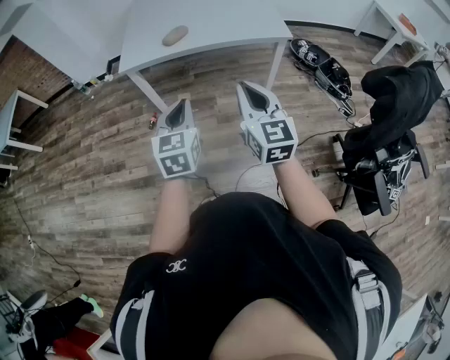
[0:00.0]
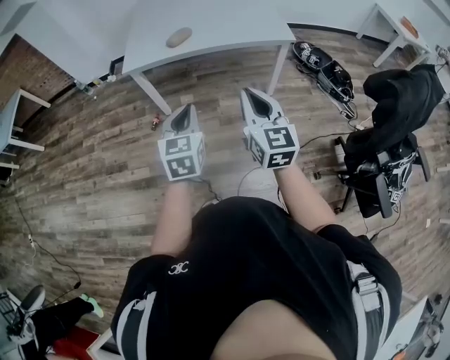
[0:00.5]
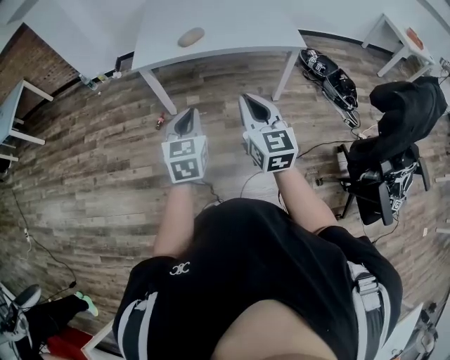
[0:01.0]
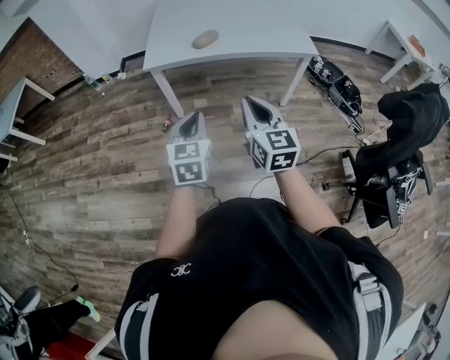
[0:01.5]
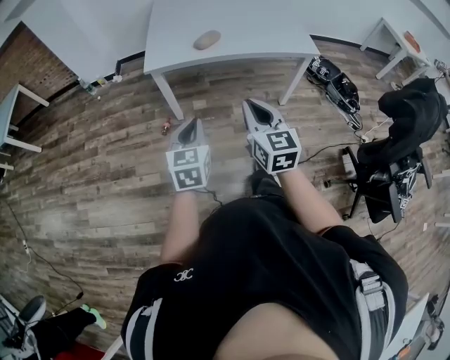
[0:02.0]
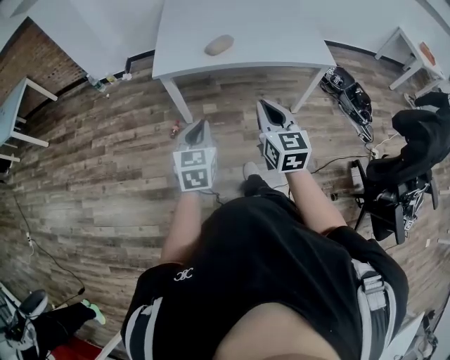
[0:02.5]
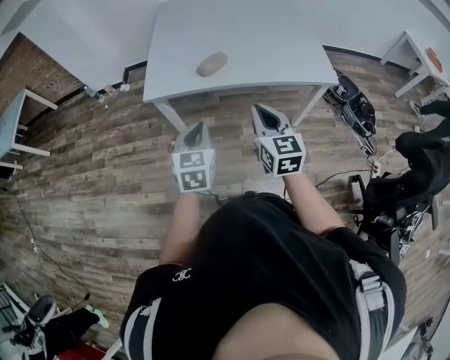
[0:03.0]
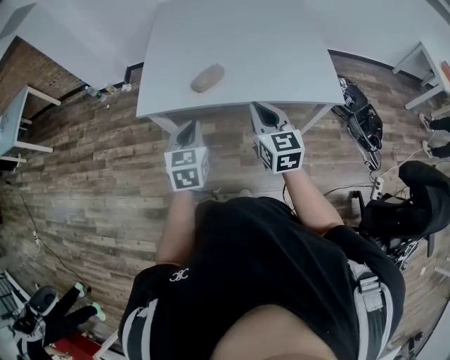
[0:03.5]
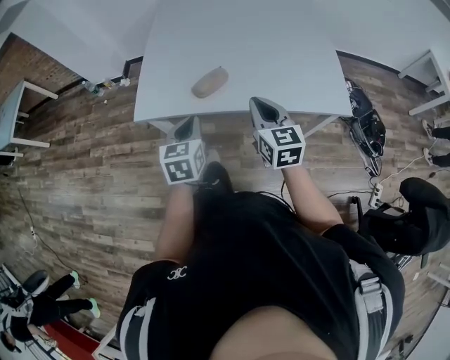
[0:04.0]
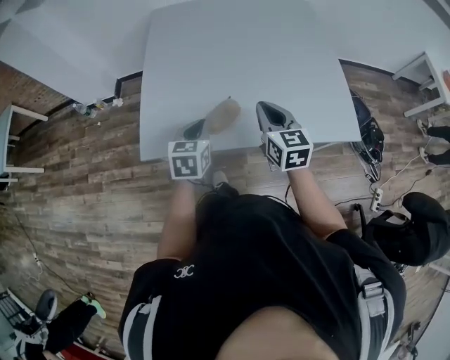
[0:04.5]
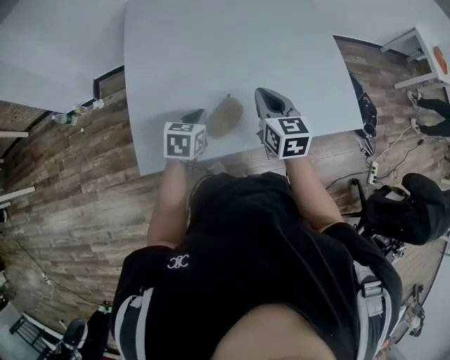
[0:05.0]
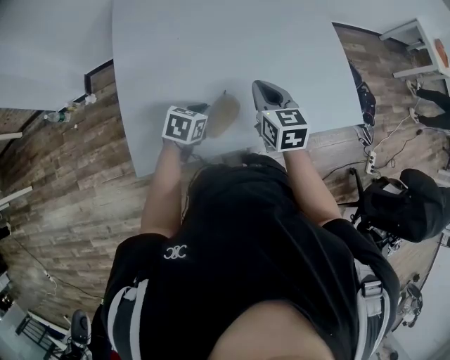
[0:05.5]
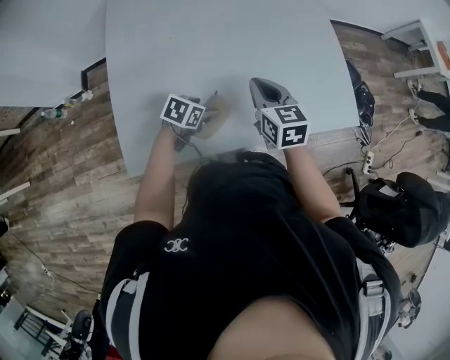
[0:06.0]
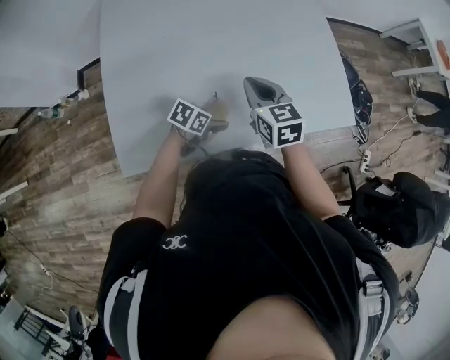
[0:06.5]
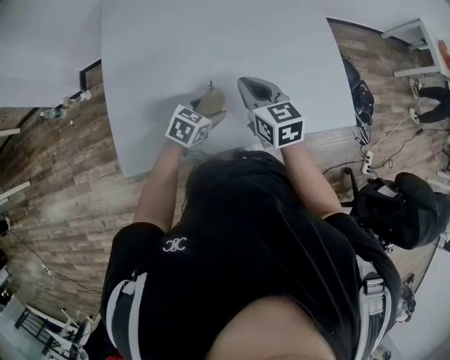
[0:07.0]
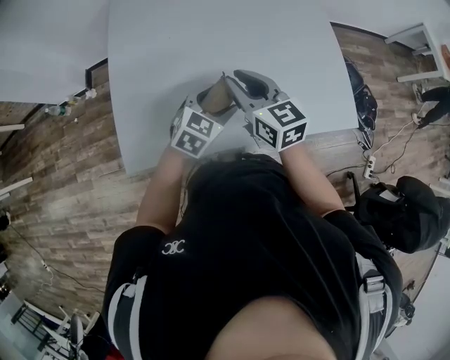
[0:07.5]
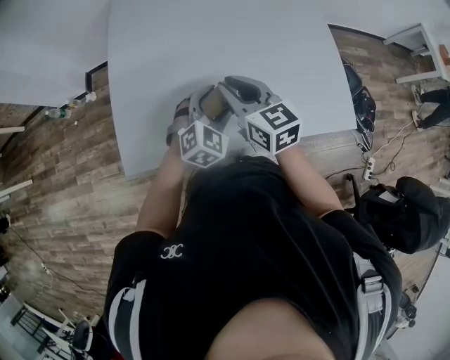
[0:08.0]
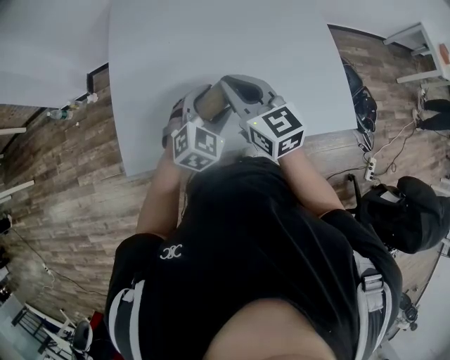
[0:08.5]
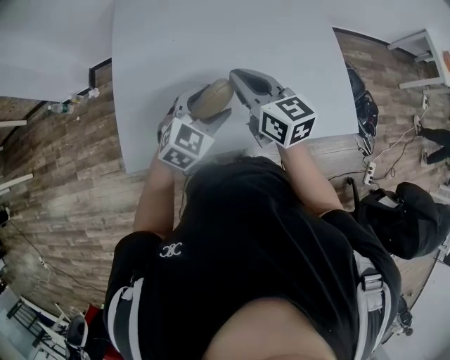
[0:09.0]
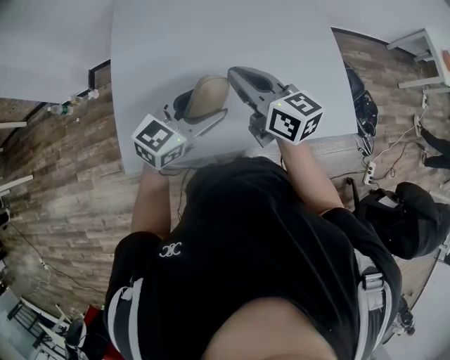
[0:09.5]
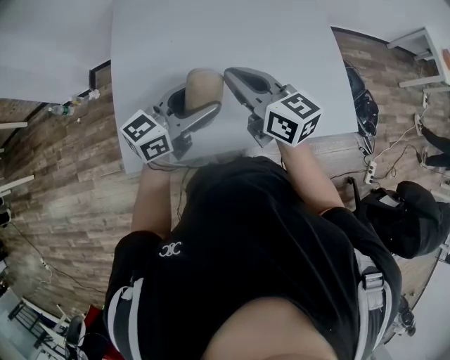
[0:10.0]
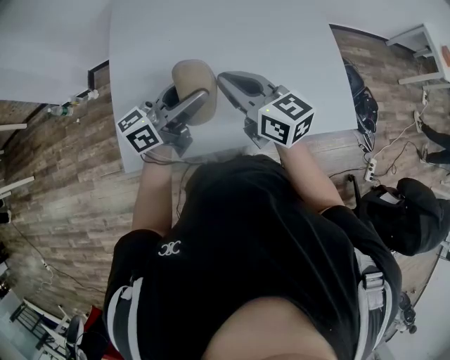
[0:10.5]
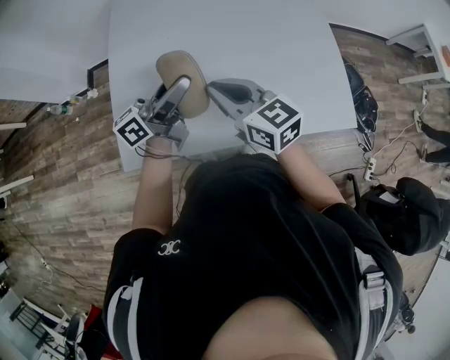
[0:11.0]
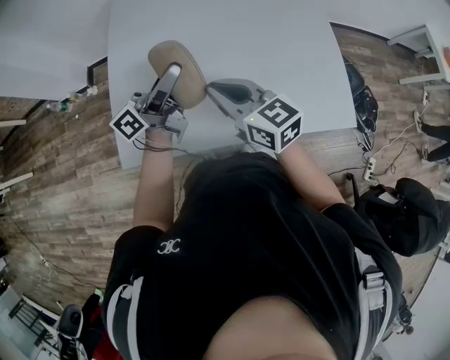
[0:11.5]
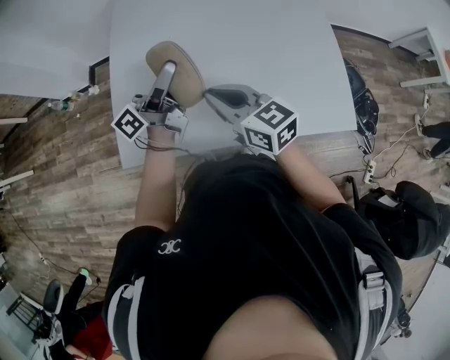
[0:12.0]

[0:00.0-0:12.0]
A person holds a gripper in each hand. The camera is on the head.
0:00.0 to 0:02.0: Both grippers move to the left, about 20 cm.
0:02.0 to 0:04.0: The pair of grippers is taken forward, about 50 cm.
0:04.0 to 0:06.0: The left gripper moves some 40 cm, changes its angle by approximately 60 degrees, and opens up, while the right gripper ends up about 35 cm from where it was.
0:06.0 to 0:08.0: The left gripper is displaced upward by approximately 15 cm, and turns by roughly 50 degrees. The right gripper heads upward, covering about 5 cm.
0:08.0 to 0:10.0: The right gripper is displaced upward by about 5 cm. The left gripper is displaced upward by about 10 cm, and tilts its fingers some 30 degrees upward.
0:10.0 to 0:12.0: The left gripper moves forward, some 5 cm, and swivels about 50 degrees. The right gripper is displaced backward by roughly 5 cm.

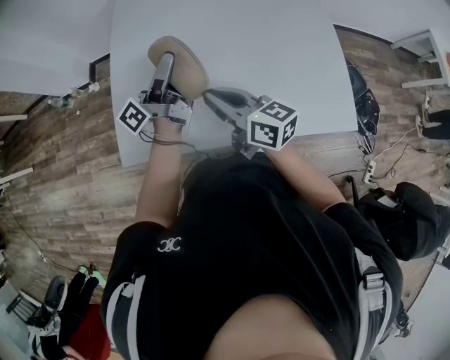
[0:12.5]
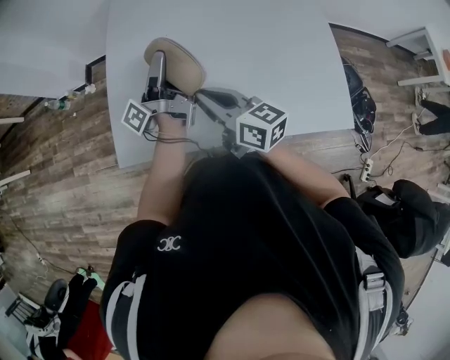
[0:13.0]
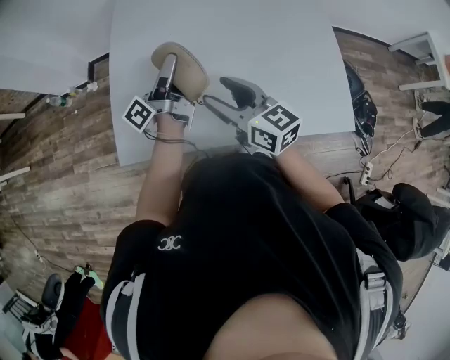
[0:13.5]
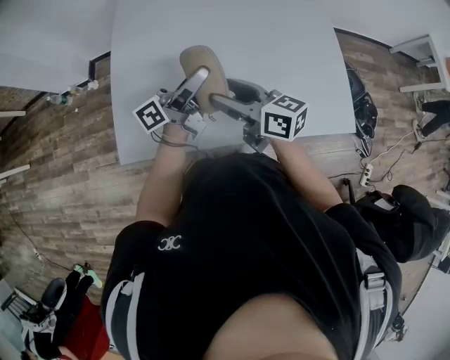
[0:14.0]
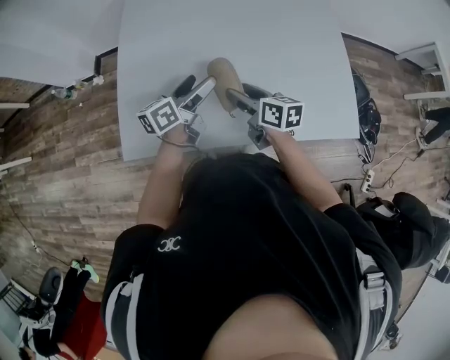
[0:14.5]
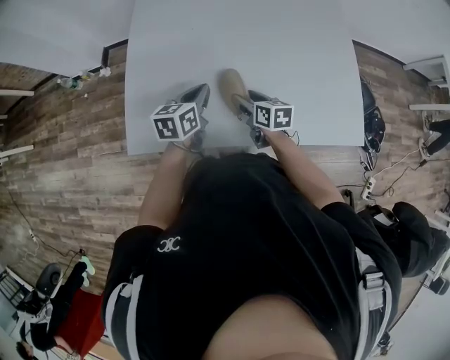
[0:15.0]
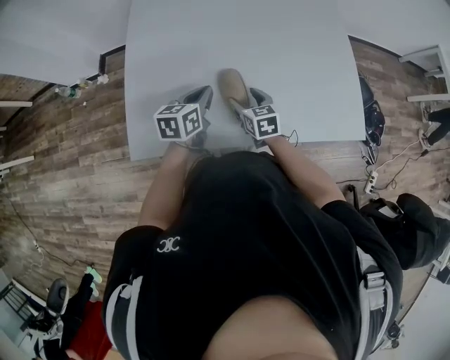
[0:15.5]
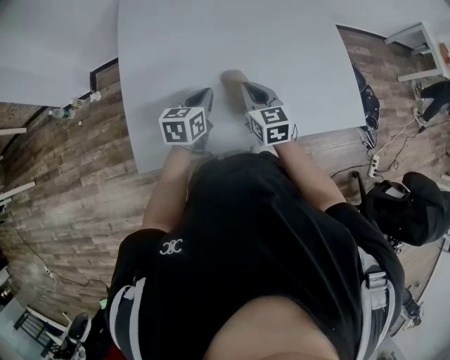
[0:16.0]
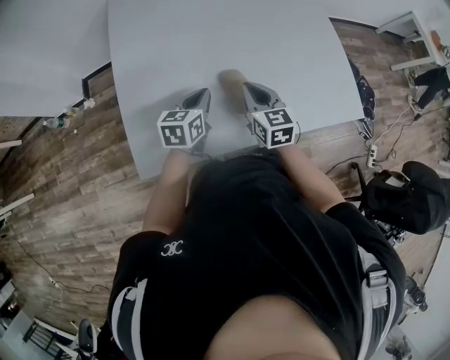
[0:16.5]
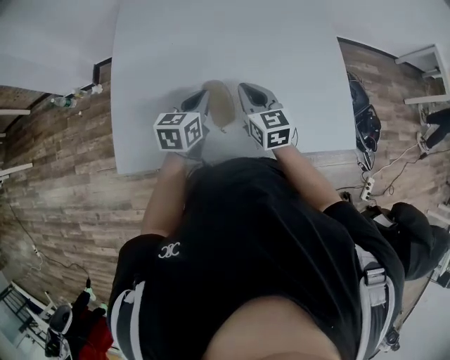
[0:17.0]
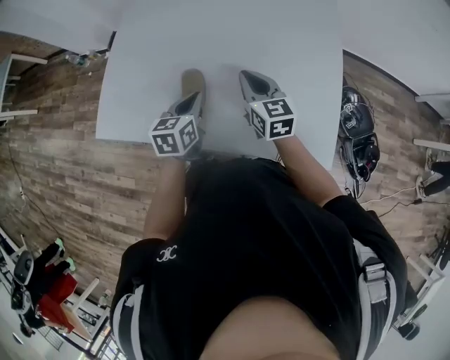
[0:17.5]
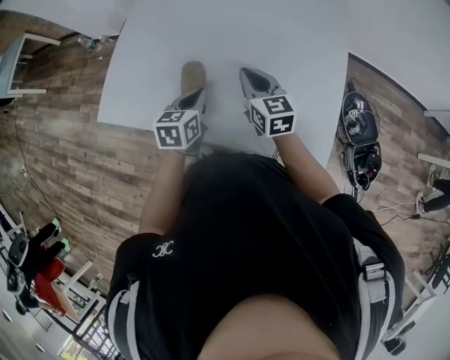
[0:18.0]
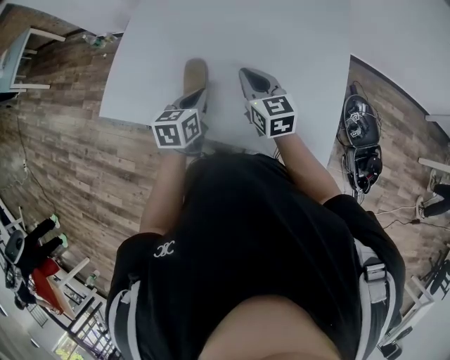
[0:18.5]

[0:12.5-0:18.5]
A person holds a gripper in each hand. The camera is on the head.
0:12.5 to 0:14.5: The right gripper moves downward and to the right, roughly 10 cm, swivels roughly 20 degrees, and opens. The left gripper travels downward by roughly 10 cm, and points its fingers some 30 degrees further downward.
0:14.5 to 0:16.5: The left gripper heads to the left and downward, covering about 5 cm, swivels roughly 30 degrees, and closes; the right gripper goes downward and returns, some 10 cm each way, changes its angle by roughly 40 degrees, and closes its fingers.
0:16.5 to 0:18.5: The left gripper changes place by about 30 cm, and changes its angle by about 30 degrees. The right gripper moves about 25 cm, and swivels about 30 degrees.

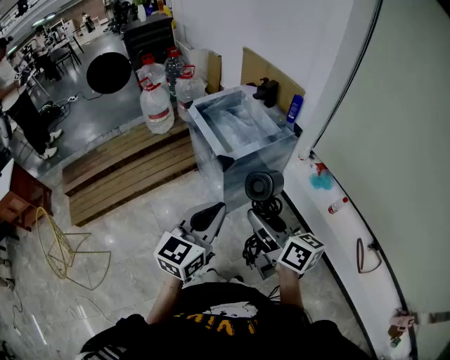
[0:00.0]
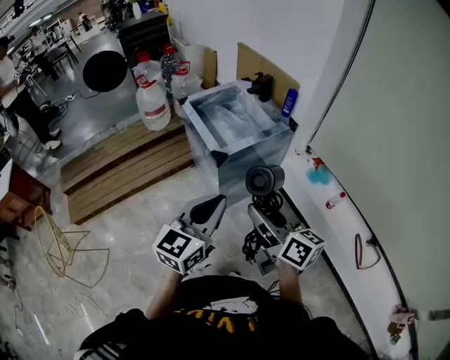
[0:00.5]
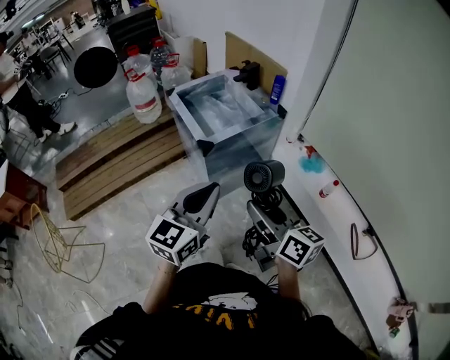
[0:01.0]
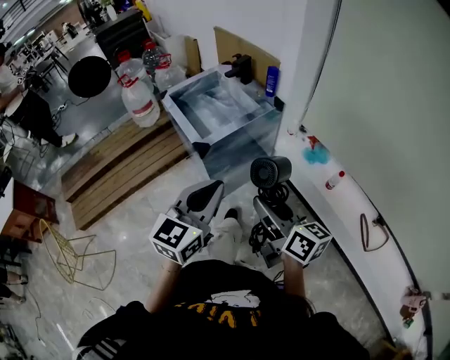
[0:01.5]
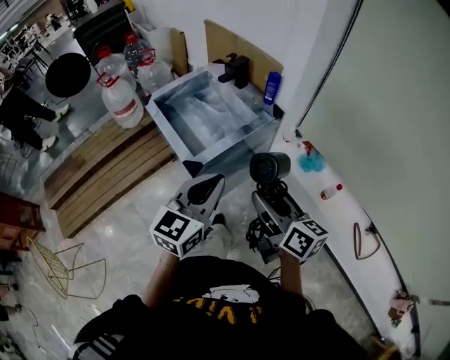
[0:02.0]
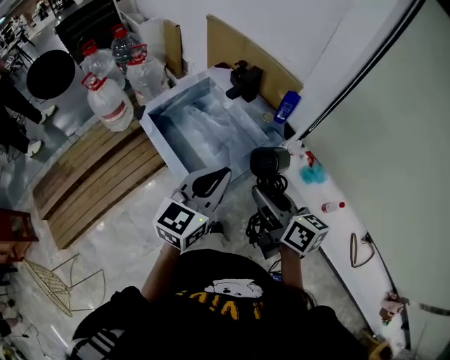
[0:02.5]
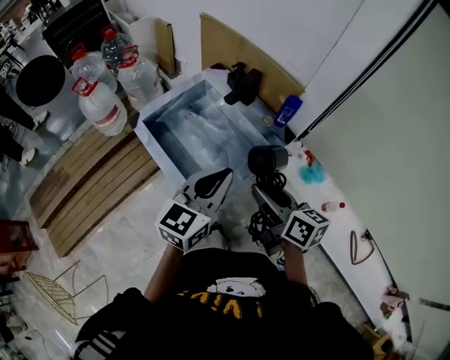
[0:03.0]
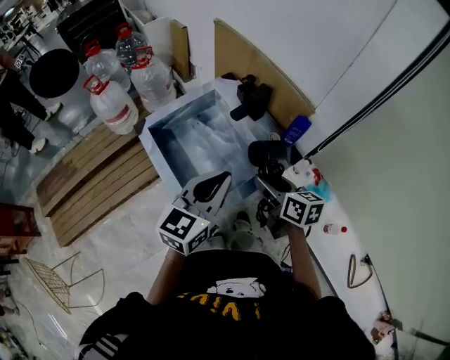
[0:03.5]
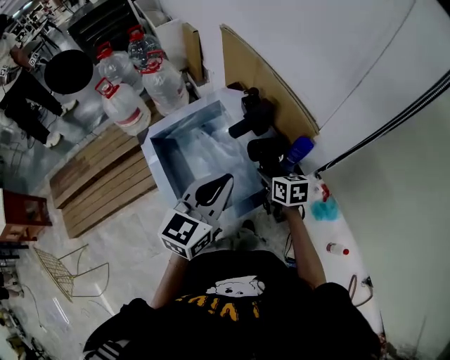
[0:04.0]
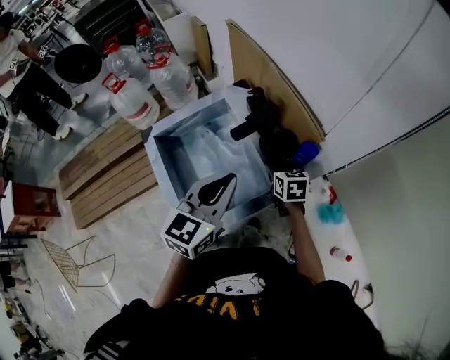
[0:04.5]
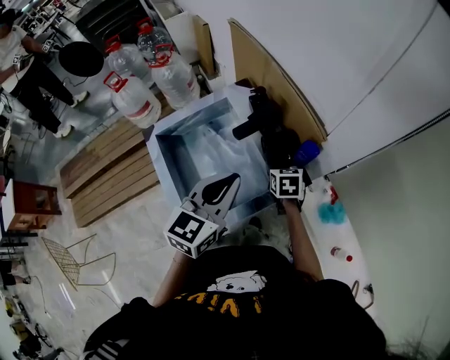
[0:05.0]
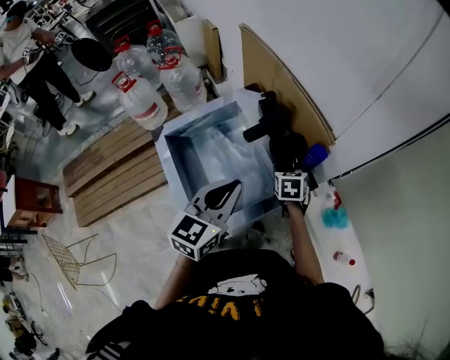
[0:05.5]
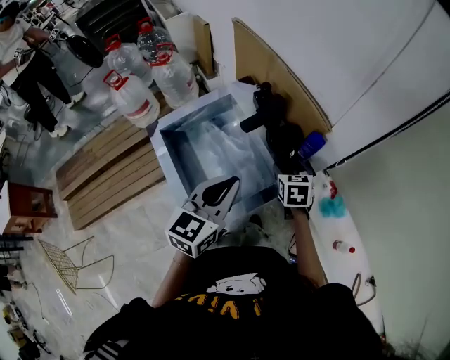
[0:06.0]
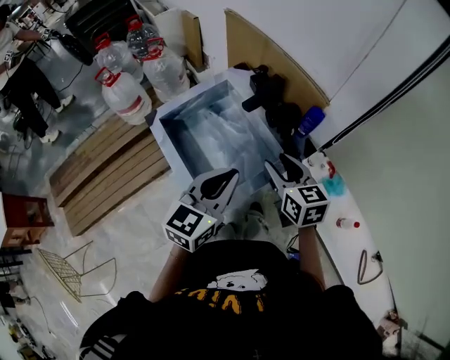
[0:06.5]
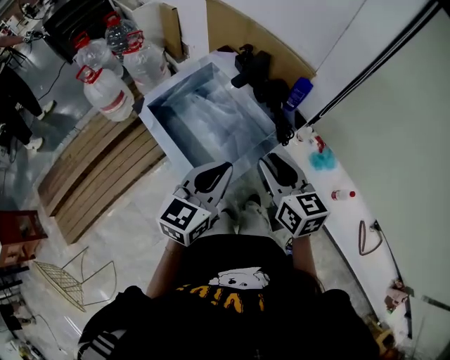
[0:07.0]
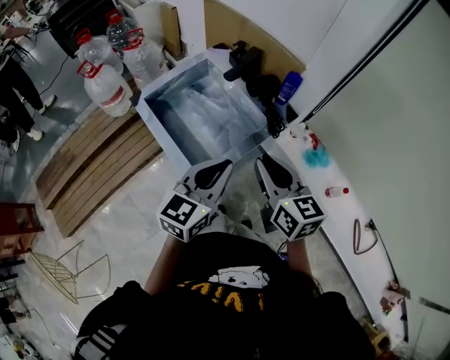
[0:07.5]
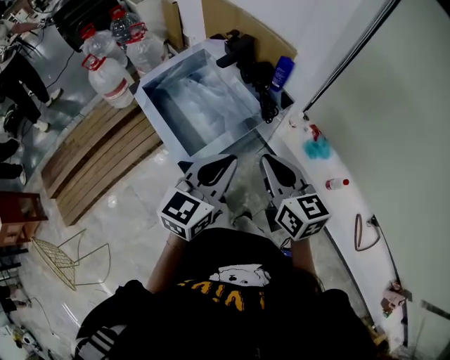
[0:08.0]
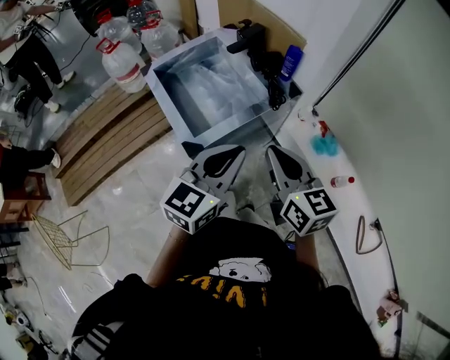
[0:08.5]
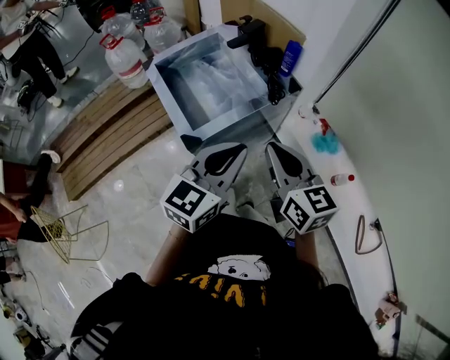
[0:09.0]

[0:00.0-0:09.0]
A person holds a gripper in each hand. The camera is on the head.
0:00.0 to 0:02.0: Both grippers move forward and to the right, some 20 cm.
0:02.0 to 0:04.5: The right gripper heads forward and downward, covering about 50 cm, and tips its fingers downward by about 40 degrees. The left gripper is displaced forward by about 35 cm.
0:04.5 to 0:07.0: The left gripper shifts some 15 cm backward; the right gripper goes roughly 30 cm backward and upward, and rotates about 30 degrees.
0:07.0 to 0:09.0: The left gripper heads to the right and backward, covering about 15 cm; the right gripper shifts some 15 cm backward and to the right, and closes up.
